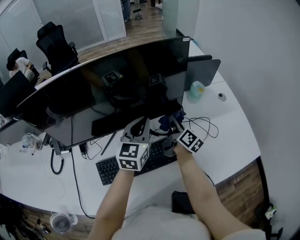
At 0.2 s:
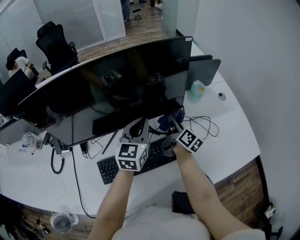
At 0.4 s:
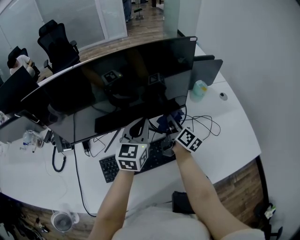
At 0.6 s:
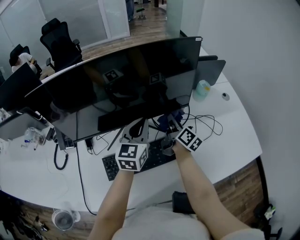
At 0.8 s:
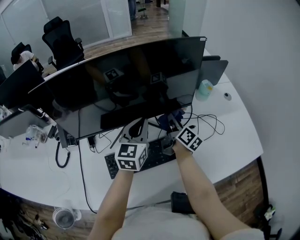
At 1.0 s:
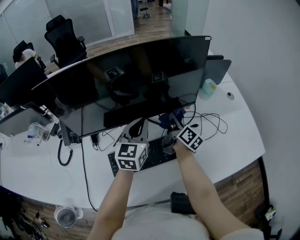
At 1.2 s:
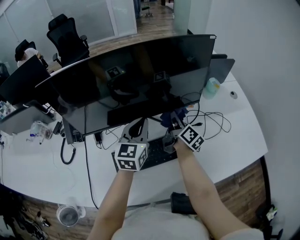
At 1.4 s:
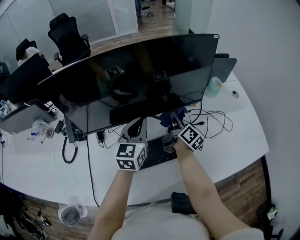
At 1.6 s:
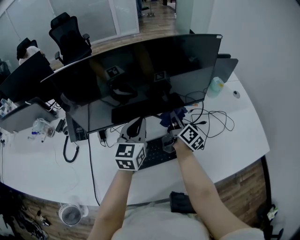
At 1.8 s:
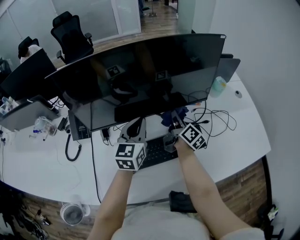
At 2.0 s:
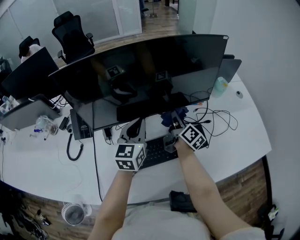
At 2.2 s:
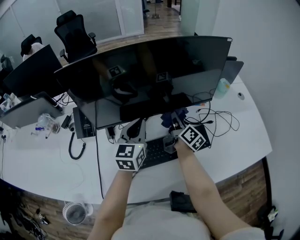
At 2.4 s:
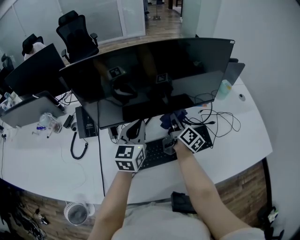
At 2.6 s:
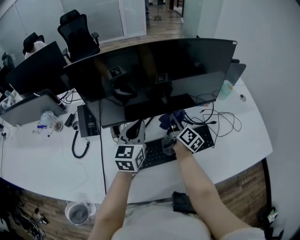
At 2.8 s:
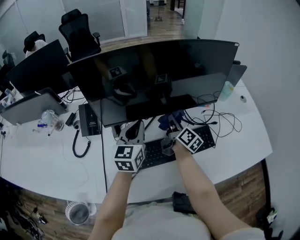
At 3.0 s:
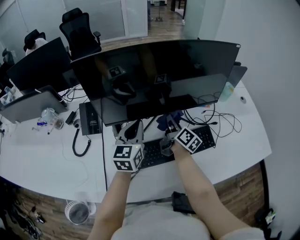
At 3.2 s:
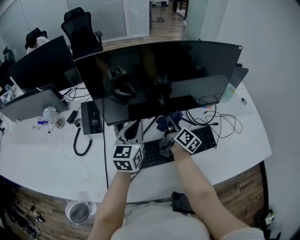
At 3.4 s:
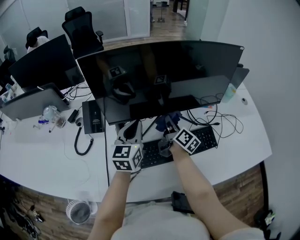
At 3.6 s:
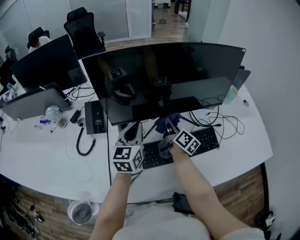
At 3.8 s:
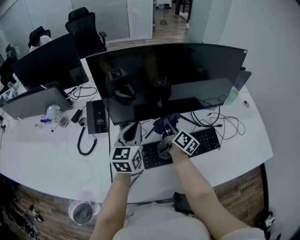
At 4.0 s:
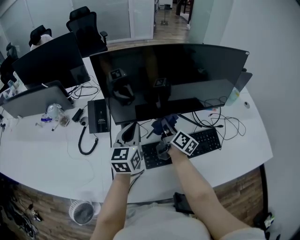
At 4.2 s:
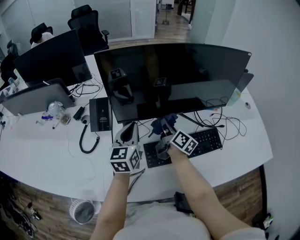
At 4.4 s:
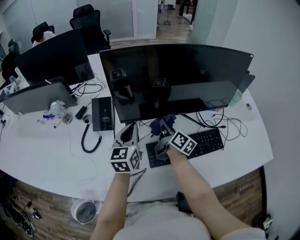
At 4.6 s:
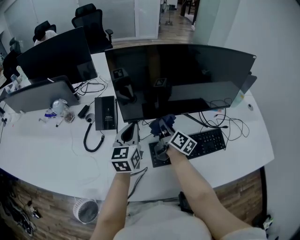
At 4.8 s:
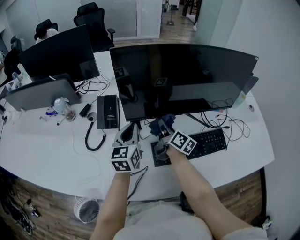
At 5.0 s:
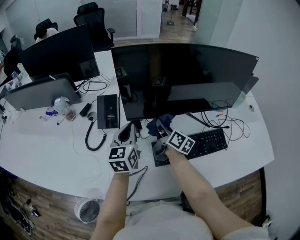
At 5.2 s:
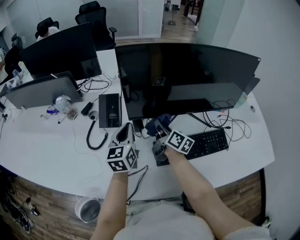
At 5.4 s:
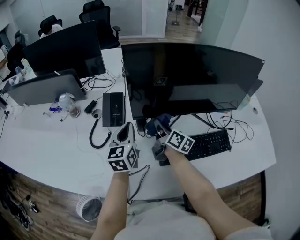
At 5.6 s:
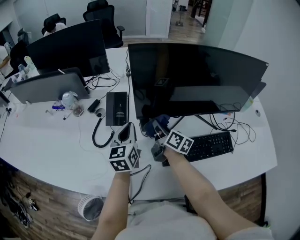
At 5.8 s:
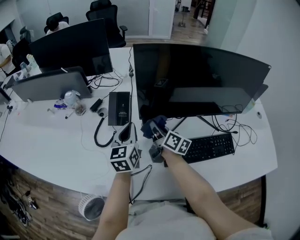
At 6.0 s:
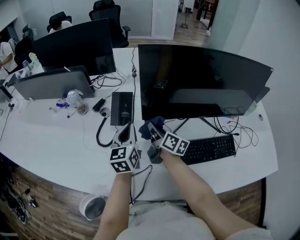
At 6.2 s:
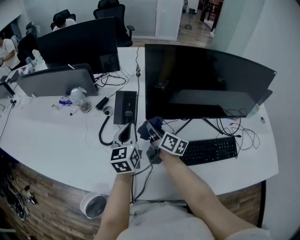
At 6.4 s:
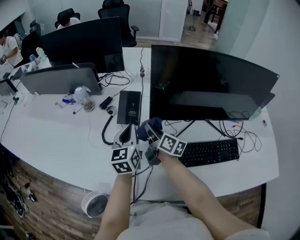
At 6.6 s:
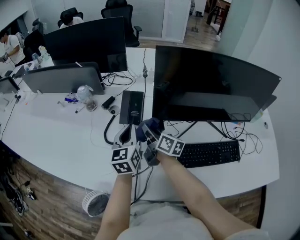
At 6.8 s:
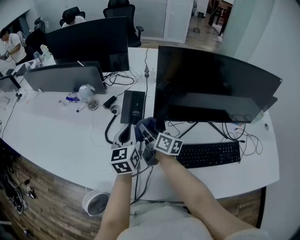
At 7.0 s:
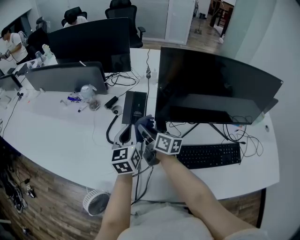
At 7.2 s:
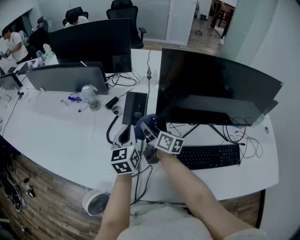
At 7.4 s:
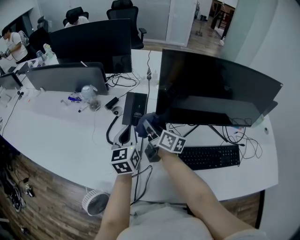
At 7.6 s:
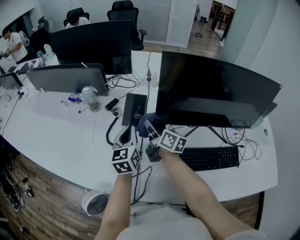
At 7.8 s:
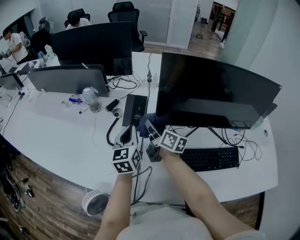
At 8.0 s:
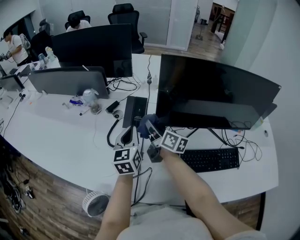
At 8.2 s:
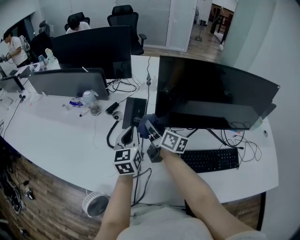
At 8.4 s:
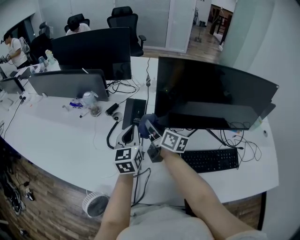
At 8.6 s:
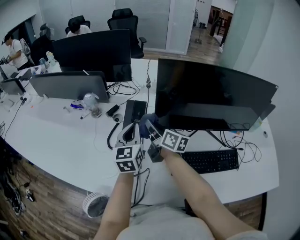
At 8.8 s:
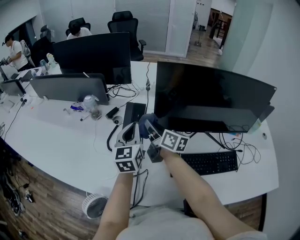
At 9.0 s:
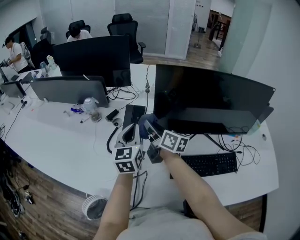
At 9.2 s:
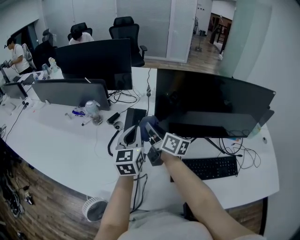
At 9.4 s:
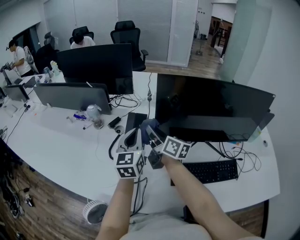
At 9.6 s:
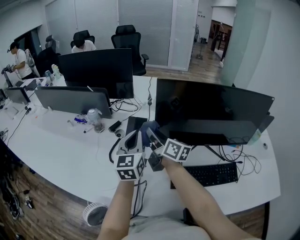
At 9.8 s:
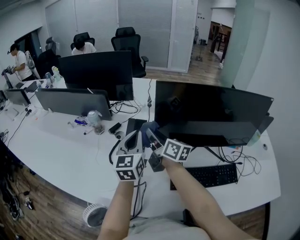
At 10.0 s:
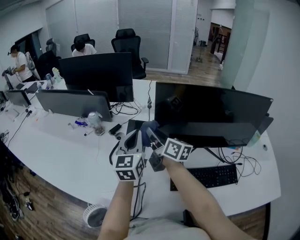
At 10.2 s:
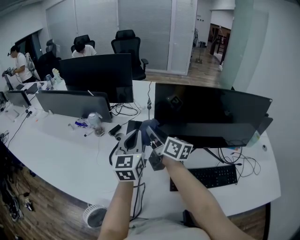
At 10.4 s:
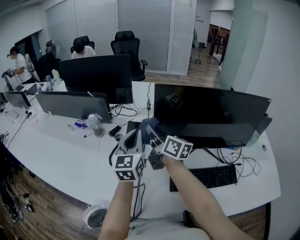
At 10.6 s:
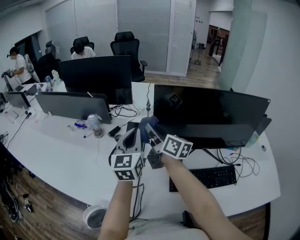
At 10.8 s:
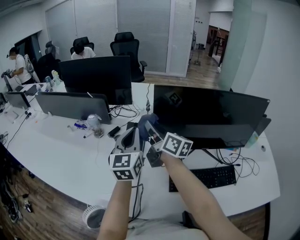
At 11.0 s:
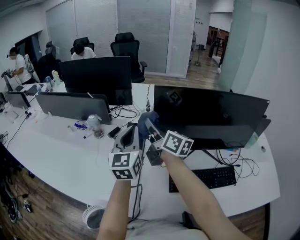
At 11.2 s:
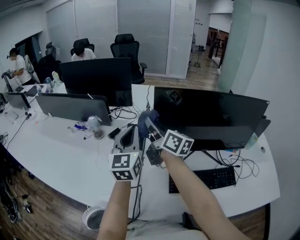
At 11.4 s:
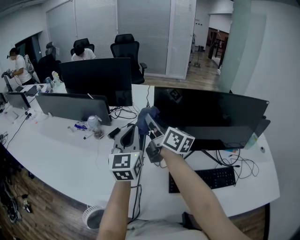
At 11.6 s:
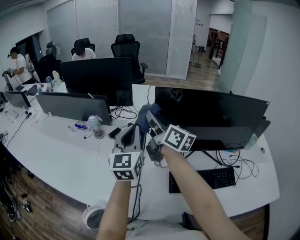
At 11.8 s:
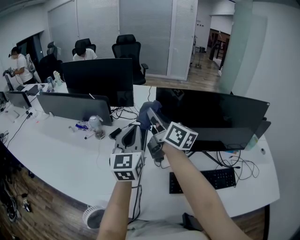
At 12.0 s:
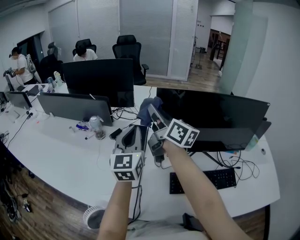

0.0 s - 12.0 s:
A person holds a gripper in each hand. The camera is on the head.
0.0 s - 1.6 s: The left gripper travels to the left and backward by approximately 15 cm. Meanwhile the right gripper travels to the left by about 10 cm.
1.6 s - 3.0 s: Both grippers move to the left, some 10 cm.
3.0 s - 4.4 s: The grippers both shift to the left by about 10 cm.
4.4 s - 6.0 s: Both grippers travel together to the left, some 15 cm.
6.0 s - 7.6 s: Both grippers move to the left, roughly 5 cm.
7.6 s - 9.0 s: Both grippers move upward, some 5 cm.
9.0 s - 10.4 s: The two grippers go approximately 5 cm upward.
10.4 s - 12.0 s: The right gripper moves upward, about 10 cm.

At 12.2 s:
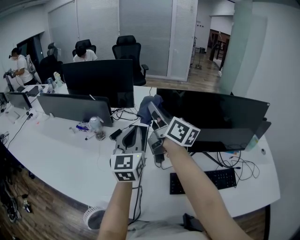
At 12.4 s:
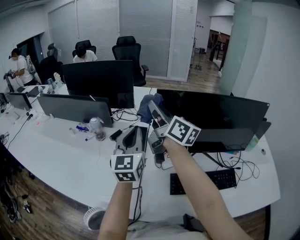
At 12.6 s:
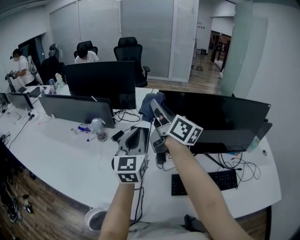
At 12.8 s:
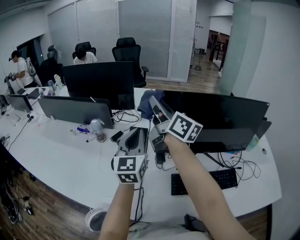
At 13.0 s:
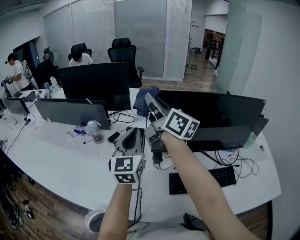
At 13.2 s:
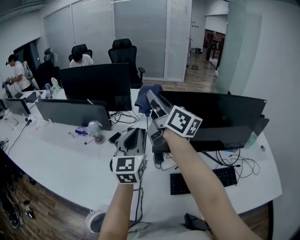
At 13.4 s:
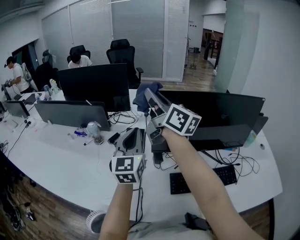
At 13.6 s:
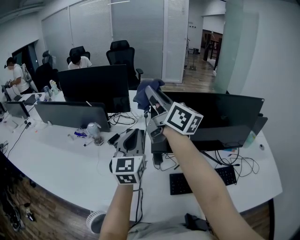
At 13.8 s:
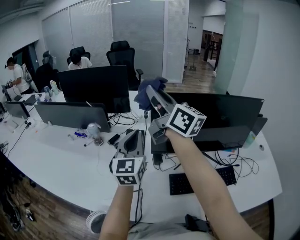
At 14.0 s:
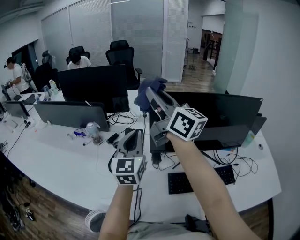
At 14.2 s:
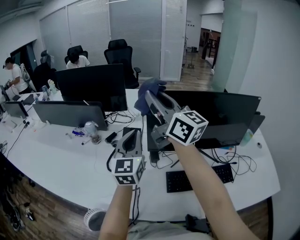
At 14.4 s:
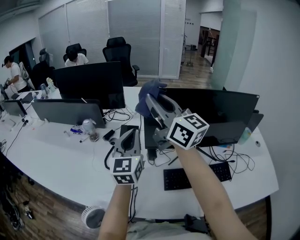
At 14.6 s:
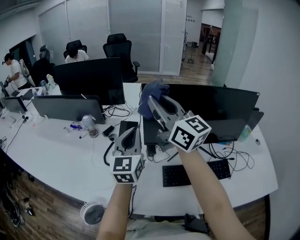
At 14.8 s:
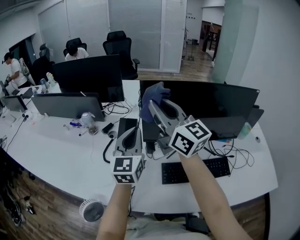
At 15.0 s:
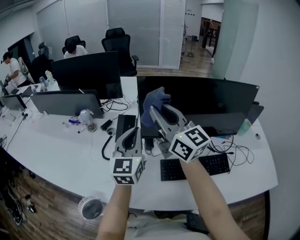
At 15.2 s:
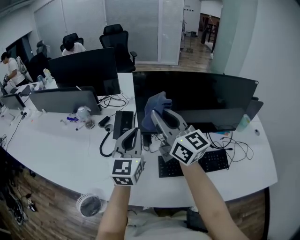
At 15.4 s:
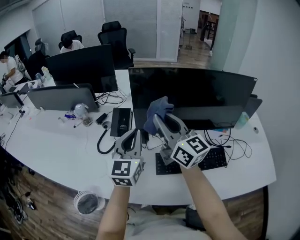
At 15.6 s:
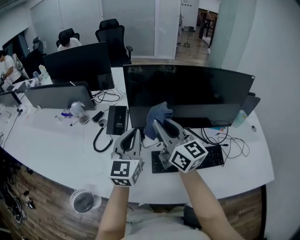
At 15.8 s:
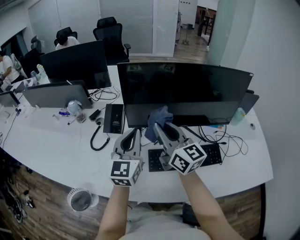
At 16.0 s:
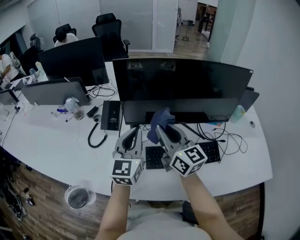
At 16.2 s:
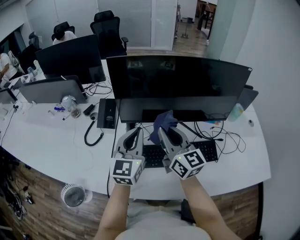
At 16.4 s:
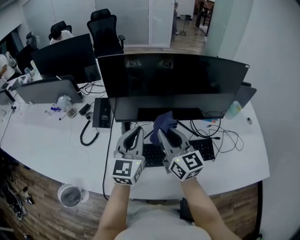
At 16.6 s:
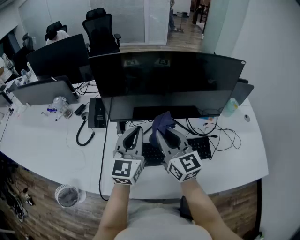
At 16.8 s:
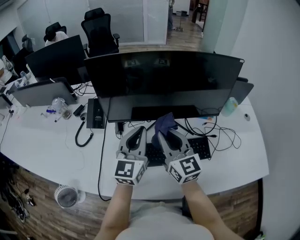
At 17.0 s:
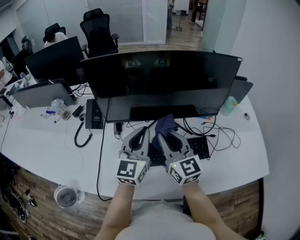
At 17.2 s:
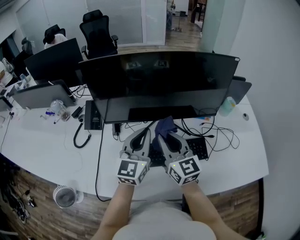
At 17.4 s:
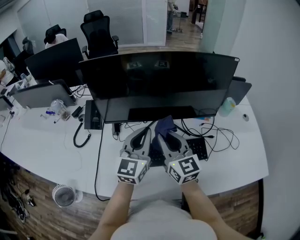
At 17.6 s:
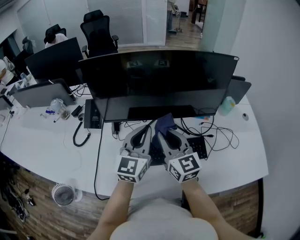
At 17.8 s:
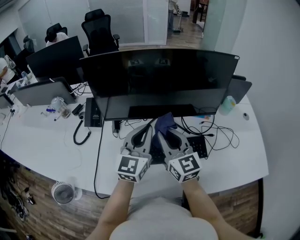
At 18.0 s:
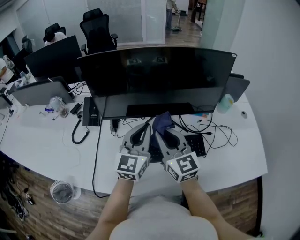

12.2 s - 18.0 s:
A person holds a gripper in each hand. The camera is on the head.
12.2 s - 13.6 s: The right gripper heads upward, covering approximately 10 cm.
13.6 s - 15.0 s: The right gripper heads backward and downward, covering some 15 cm, and swivels some 20 degrees, while the left gripper heads backward, covering approximately 5 cm.
15.0 s - 16.6 s: The left gripper moves to the right and downward, some 15 cm; the right gripper heads downward, to the right and backward, covering approximately 25 cm.
16.6 s - 18.0 s: The left gripper is displaced to the right by some 5 cm.

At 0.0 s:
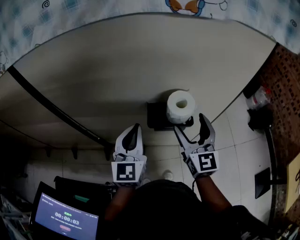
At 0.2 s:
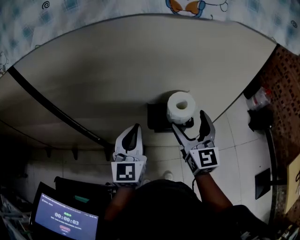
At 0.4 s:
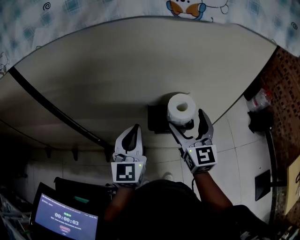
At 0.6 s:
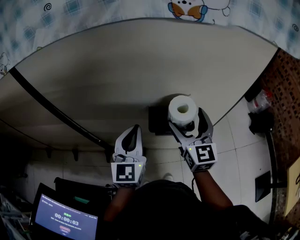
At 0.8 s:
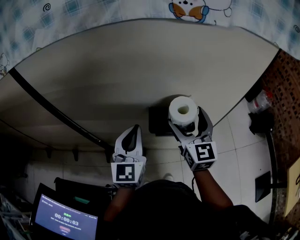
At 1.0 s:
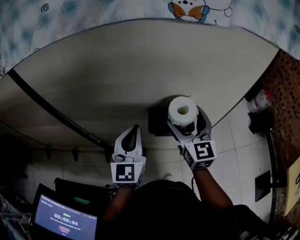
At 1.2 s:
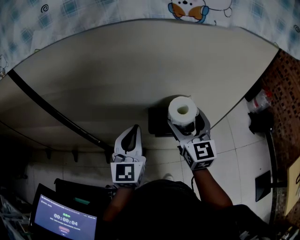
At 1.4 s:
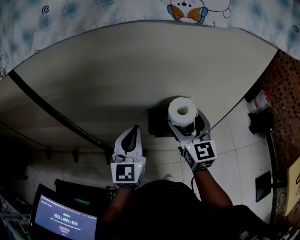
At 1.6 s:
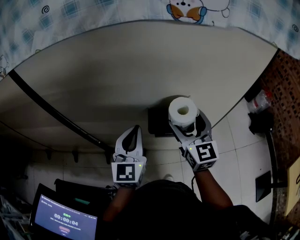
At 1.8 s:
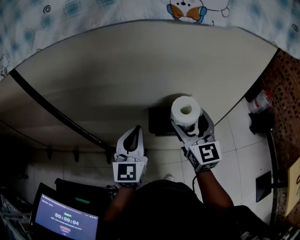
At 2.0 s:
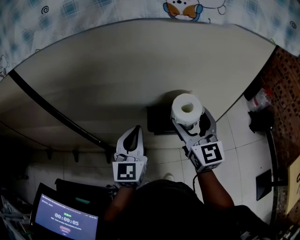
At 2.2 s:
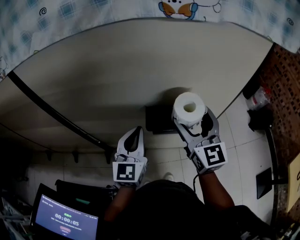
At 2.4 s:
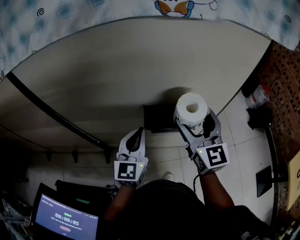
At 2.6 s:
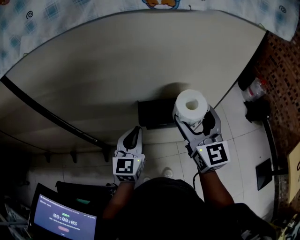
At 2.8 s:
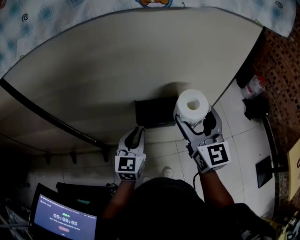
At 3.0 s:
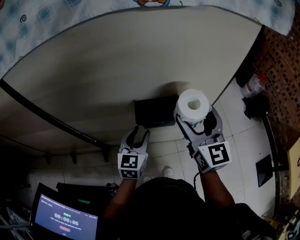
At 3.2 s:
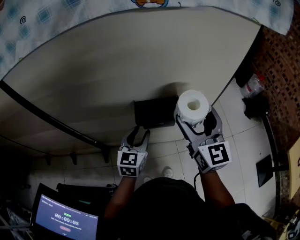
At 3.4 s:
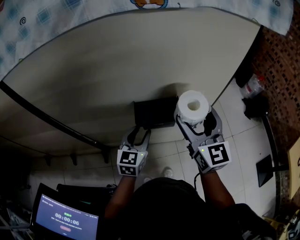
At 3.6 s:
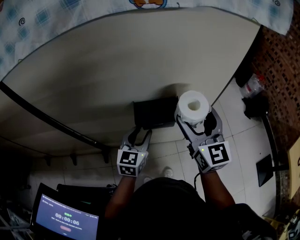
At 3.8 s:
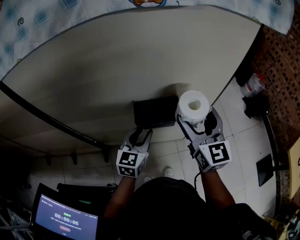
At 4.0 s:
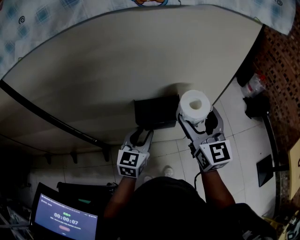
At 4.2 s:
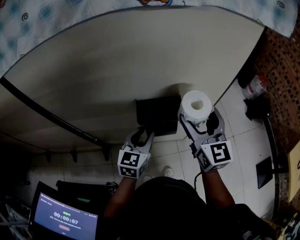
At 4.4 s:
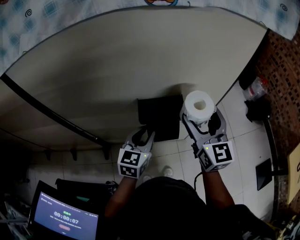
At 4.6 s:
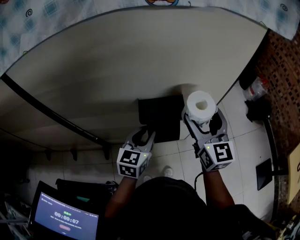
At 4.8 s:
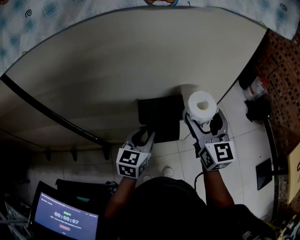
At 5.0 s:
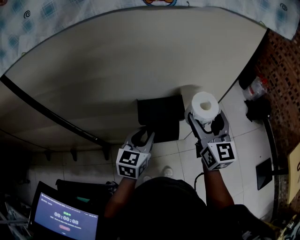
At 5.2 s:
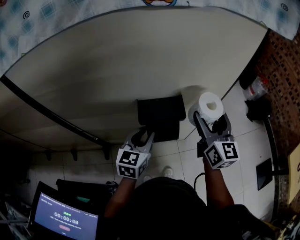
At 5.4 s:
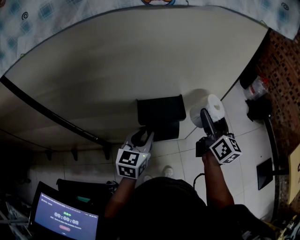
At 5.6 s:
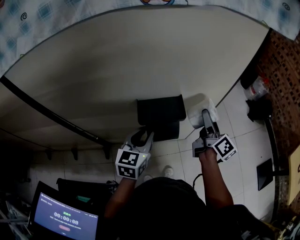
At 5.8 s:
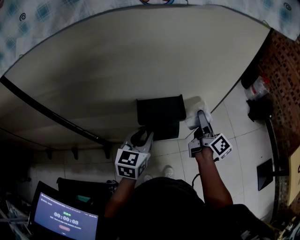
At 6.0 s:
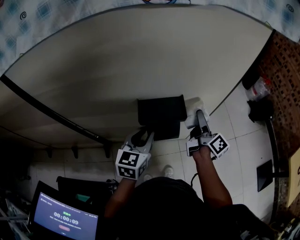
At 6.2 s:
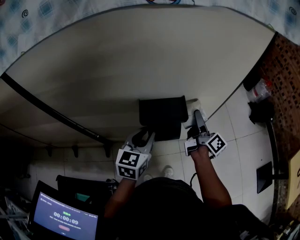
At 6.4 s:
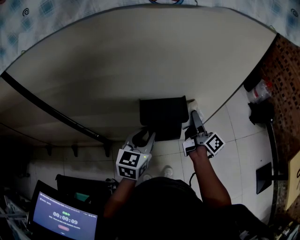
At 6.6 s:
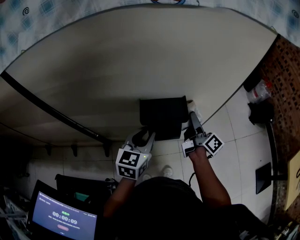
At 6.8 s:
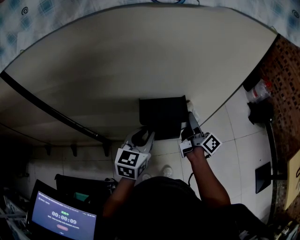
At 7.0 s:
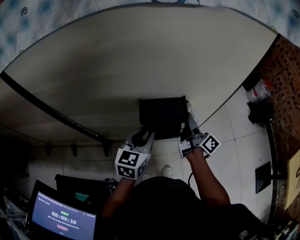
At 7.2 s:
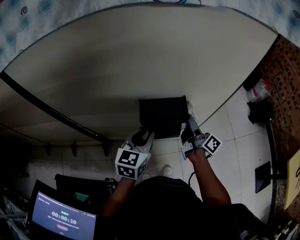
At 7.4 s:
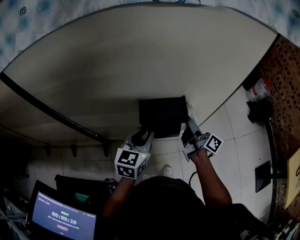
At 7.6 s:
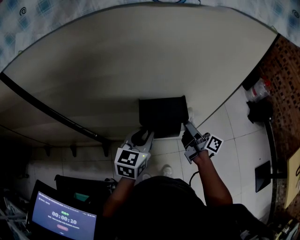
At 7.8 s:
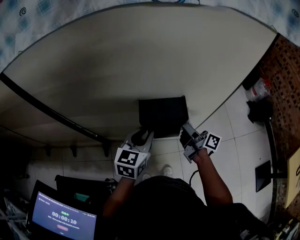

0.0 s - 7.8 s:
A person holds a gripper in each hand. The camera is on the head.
0.0 s - 1.6 s: The grippers stay close to where they were, moving slightly.
1.6 s - 3.2 s: The left gripper goes about 10 cm downward, rotates some 20 degrees, and opens its fingers; the right gripper travels backward by about 5 cm.
3.2 s - 4.6 s: The grippers stay close to where they were, moving slightly.
4.6 s - 6.2 s: The right gripper is displaced downward and forward by approximately 15 cm, and rolls clockwise, seen from behind, by about 70 degrees.
6.2 s - 7.8 s: The right gripper goes some 5 cm to the left, and swivels about 30 degrees.